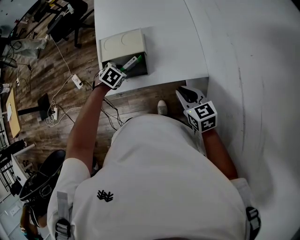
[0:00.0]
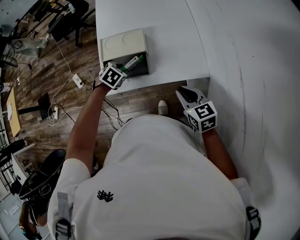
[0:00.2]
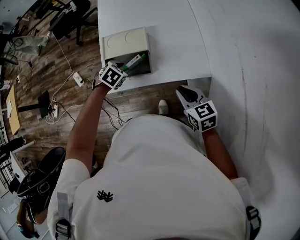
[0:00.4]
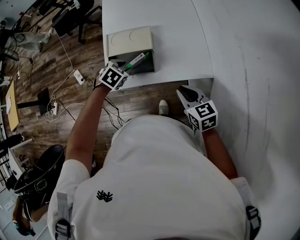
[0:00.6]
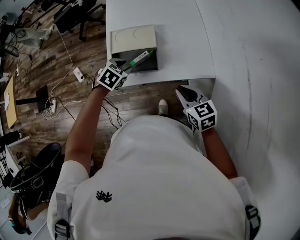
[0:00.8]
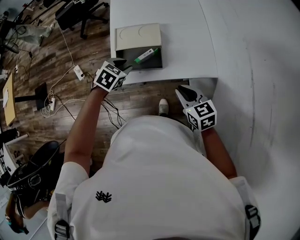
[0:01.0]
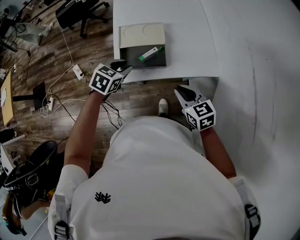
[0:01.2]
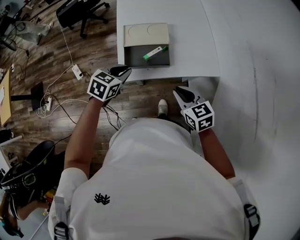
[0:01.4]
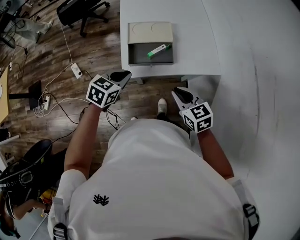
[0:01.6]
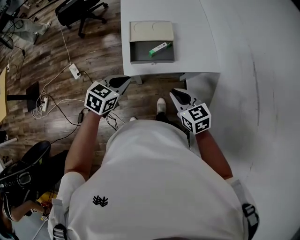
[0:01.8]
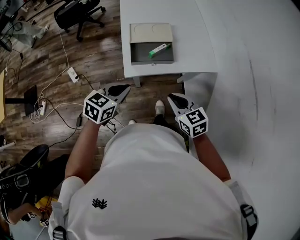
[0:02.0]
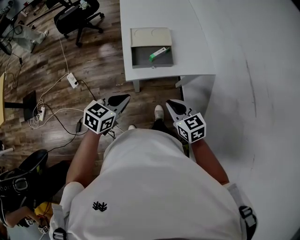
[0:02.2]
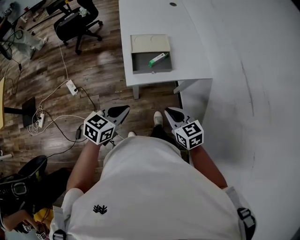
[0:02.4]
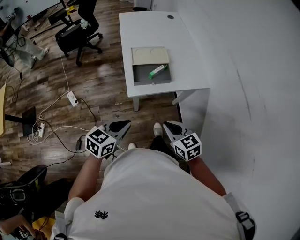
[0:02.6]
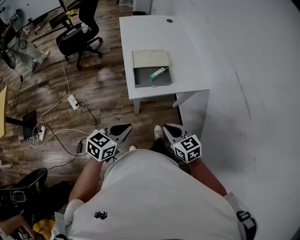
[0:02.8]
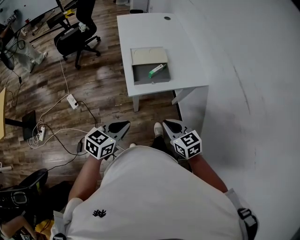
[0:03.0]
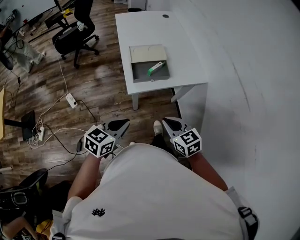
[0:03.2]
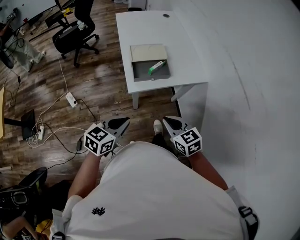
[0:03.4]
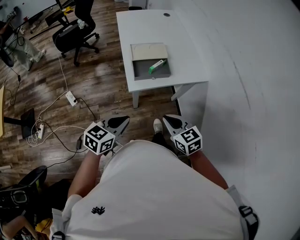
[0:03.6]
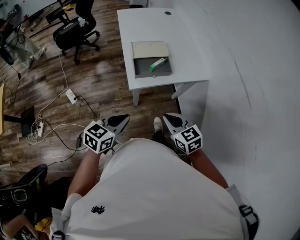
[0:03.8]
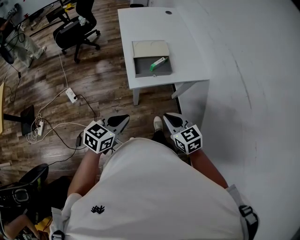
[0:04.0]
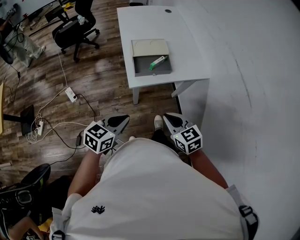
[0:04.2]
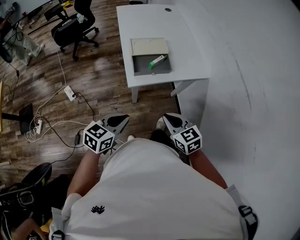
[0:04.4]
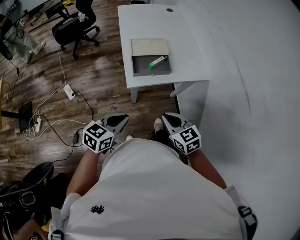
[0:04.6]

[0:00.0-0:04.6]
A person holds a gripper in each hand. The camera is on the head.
0:00.0 to 0:01.6: The left gripper heads upward, backward and to the left, covering roughly 20 cm, angles its fingers upward, by approximately 30 degrees, and closes up. The right gripper travels to the left by some 15 cm.
0:01.6 to 0:03.0: The right gripper heads backward and to the left, covering some 15 cm. The left gripper moves backward, some 20 cm.
0:03.0 to 0:04.6: There are only small adjustments of the grippers.

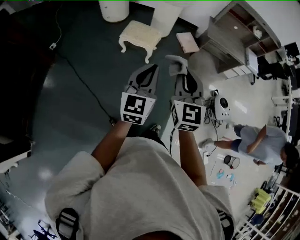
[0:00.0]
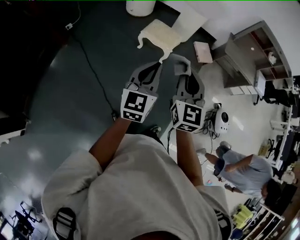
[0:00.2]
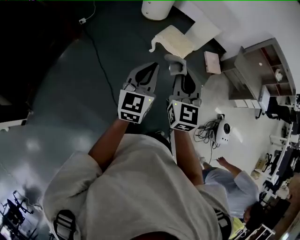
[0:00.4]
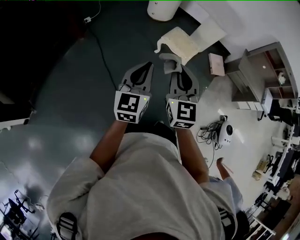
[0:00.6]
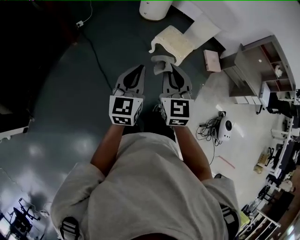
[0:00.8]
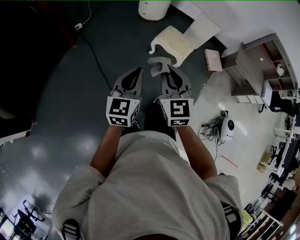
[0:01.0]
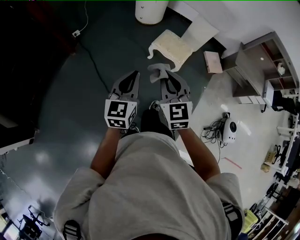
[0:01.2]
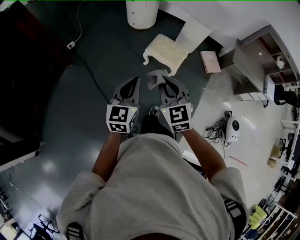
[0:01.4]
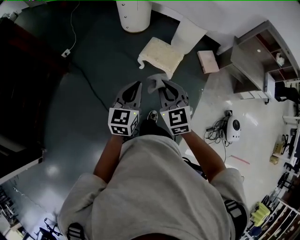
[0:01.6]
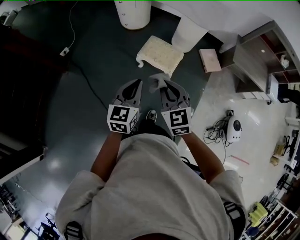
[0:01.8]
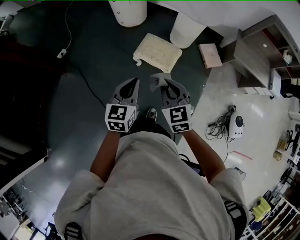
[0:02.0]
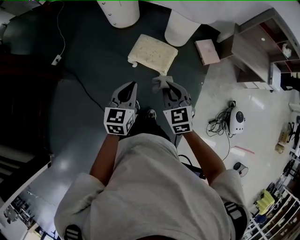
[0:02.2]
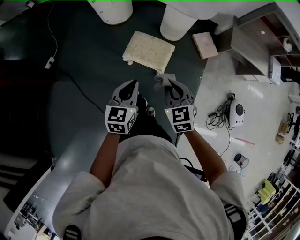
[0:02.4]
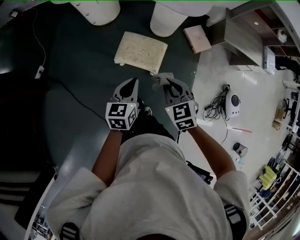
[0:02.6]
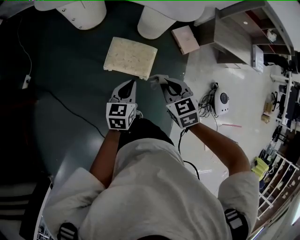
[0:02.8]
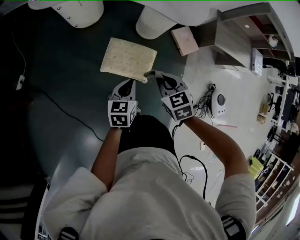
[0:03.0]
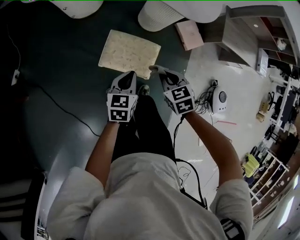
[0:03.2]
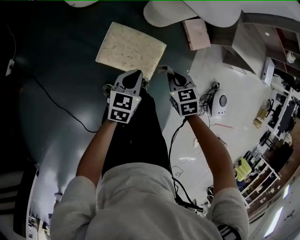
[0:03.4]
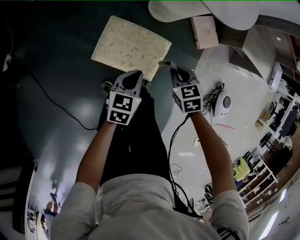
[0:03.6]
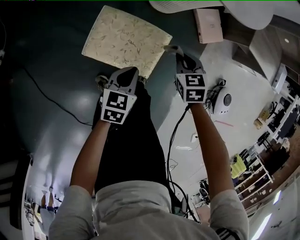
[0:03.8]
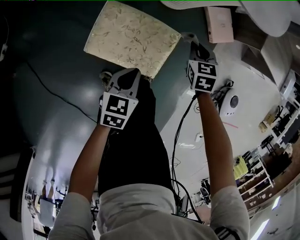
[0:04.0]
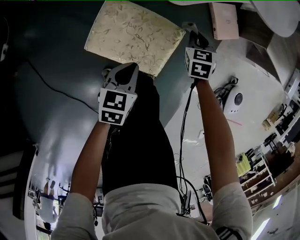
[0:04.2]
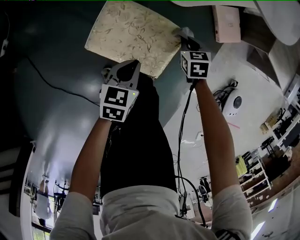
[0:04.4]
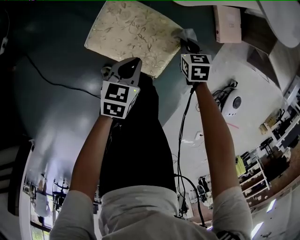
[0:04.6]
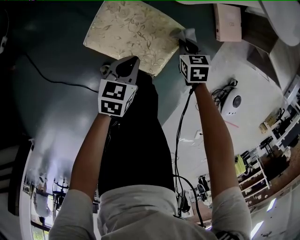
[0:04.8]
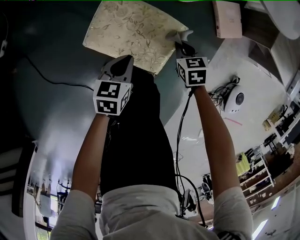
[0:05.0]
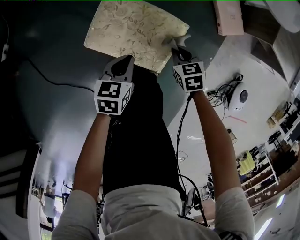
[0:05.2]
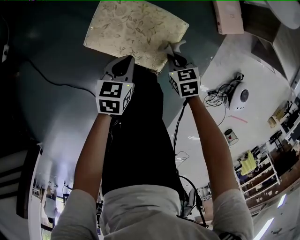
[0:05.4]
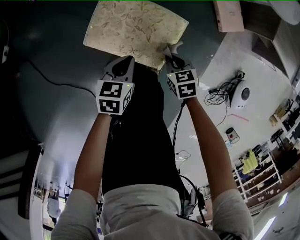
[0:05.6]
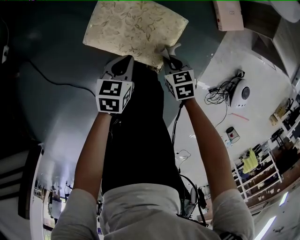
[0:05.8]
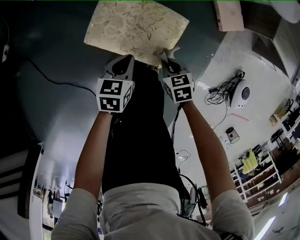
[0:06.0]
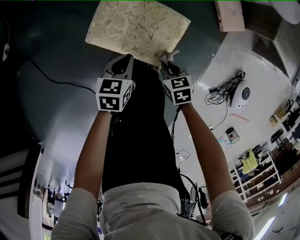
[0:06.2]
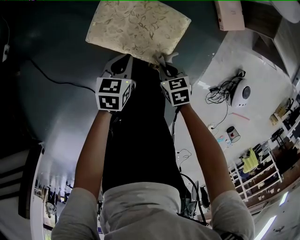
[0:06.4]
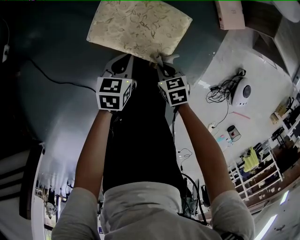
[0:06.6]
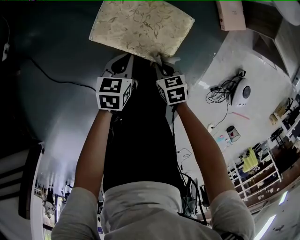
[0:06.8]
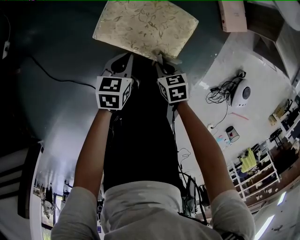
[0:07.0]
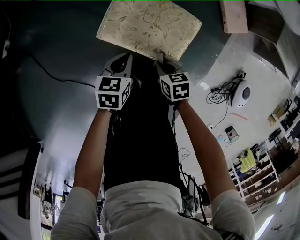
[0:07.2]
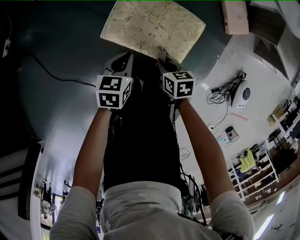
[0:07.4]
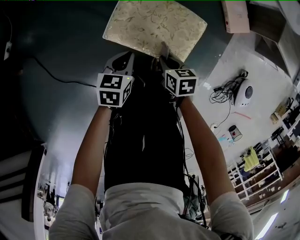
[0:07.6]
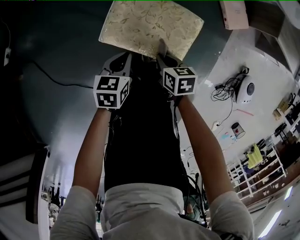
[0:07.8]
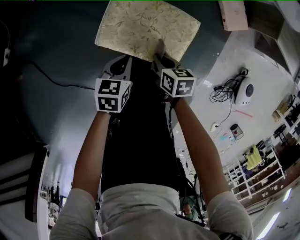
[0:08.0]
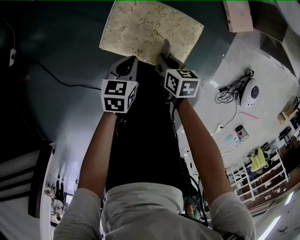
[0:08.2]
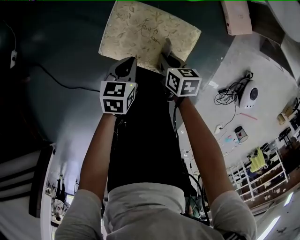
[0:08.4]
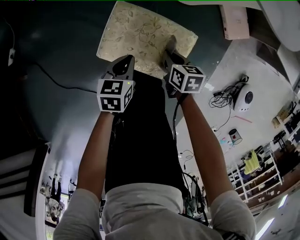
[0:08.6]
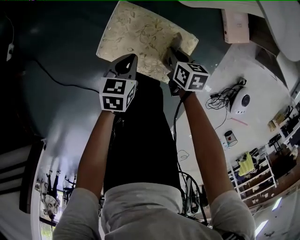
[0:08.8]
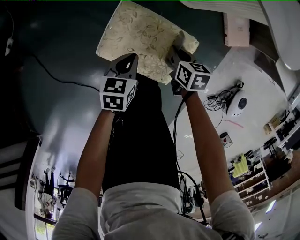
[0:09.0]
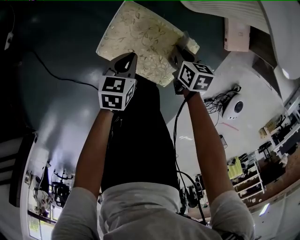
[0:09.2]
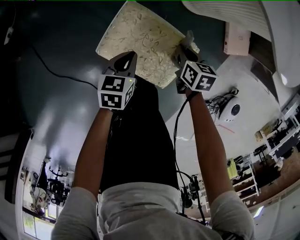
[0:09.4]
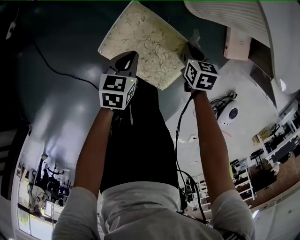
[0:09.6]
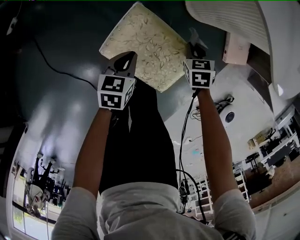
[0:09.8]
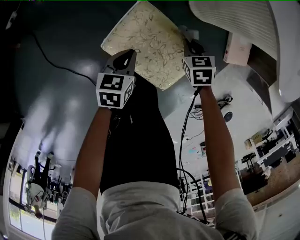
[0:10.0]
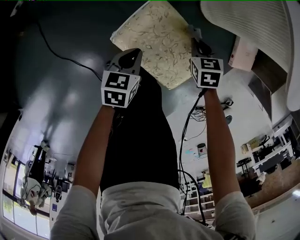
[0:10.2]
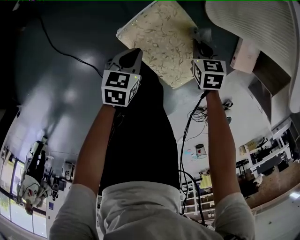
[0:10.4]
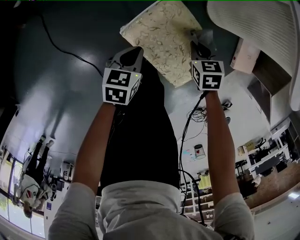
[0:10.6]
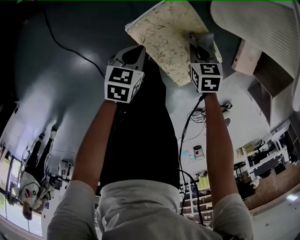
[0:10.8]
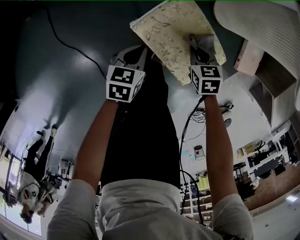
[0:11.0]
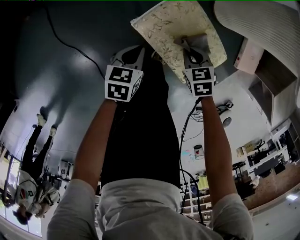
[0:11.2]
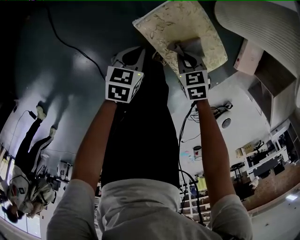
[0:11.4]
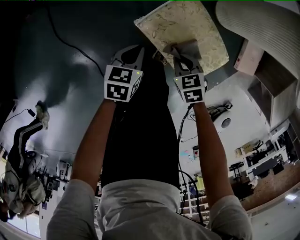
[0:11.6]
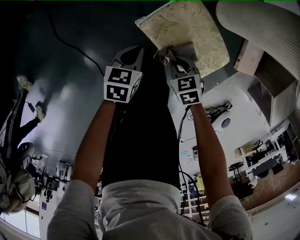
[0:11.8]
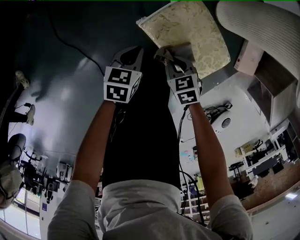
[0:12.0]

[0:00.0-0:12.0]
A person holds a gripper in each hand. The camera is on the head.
0:00.0 to 0:01.6: The left gripper heads forward and to the left, covering roughly 30 cm. Meanwhile the right gripper travels forward, to the left and downward by roughly 30 cm, and rotates approximately 30 degrees.
0:01.6 to 0:03.0: Both grippers move forward and downward, some 40 cm. The right gripper changes its angle by some 30 degrees; the left gripper changes its angle by about 30 degrees.
0:03.0 to 0:04.4: The left gripper travels downward by roughly 30 cm. The right gripper goes about 50 cm downward and forward.
0:04.4 to 0:06.0: The right gripper moves backward, approximately 15 cm.
0:06.0 to 0:07.6: Both grippers move to the left, some 10 cm.
0:07.6 to 0:09.0: The left gripper heads forward and to the right, covering roughly 10 cm, while the right gripper is displaced forward and to the right by some 15 cm.
0:09.0 to 0:10.4: The right gripper travels forward by roughly 5 cm, and rotates about 40 degrees. Meanwhile the left gripper heads to the left, covering roughly 5 cm.
0:10.4 to 0:12.0: The left gripper is displaced to the left by approximately 10 cm, while the right gripper is displaced to the left and backward by some 20 cm.

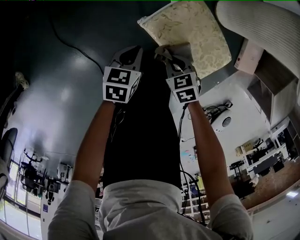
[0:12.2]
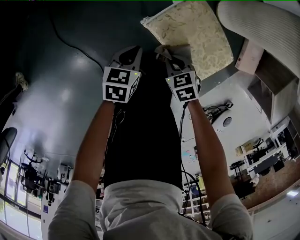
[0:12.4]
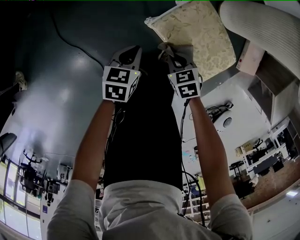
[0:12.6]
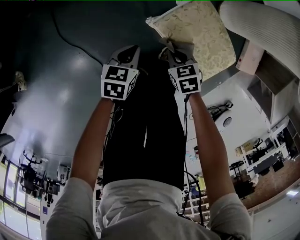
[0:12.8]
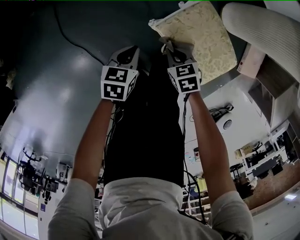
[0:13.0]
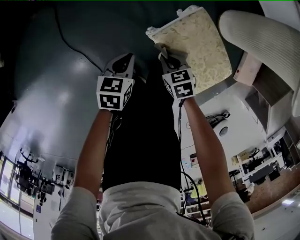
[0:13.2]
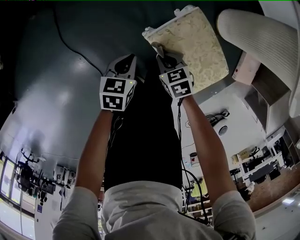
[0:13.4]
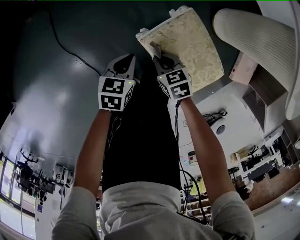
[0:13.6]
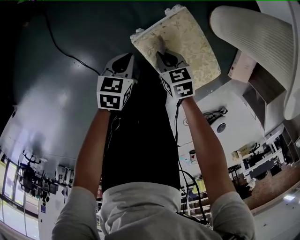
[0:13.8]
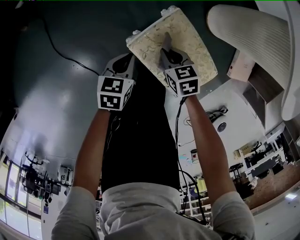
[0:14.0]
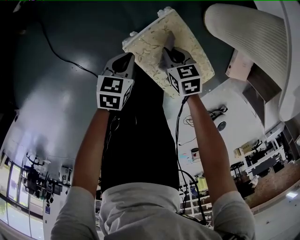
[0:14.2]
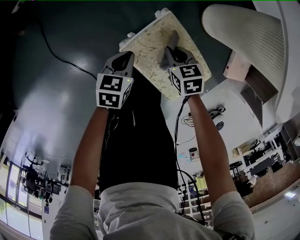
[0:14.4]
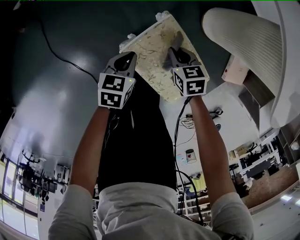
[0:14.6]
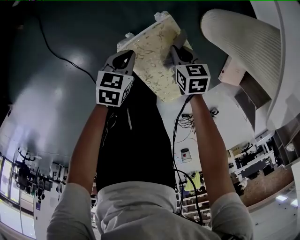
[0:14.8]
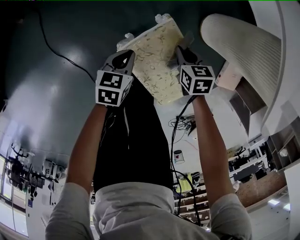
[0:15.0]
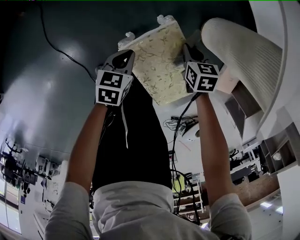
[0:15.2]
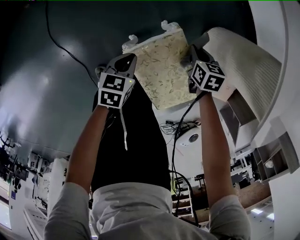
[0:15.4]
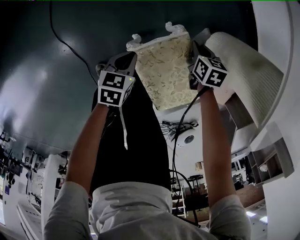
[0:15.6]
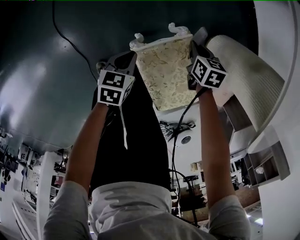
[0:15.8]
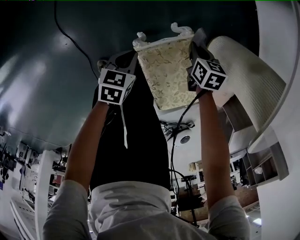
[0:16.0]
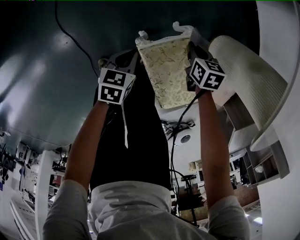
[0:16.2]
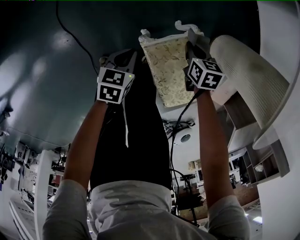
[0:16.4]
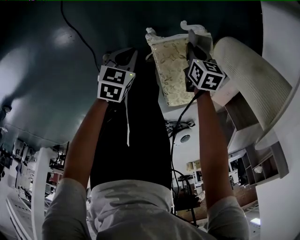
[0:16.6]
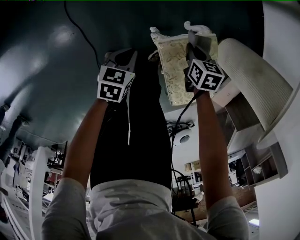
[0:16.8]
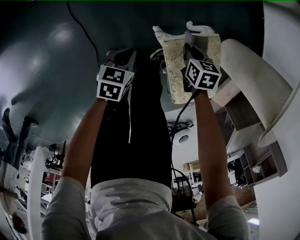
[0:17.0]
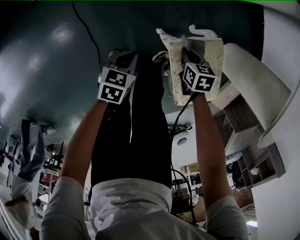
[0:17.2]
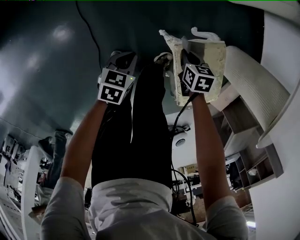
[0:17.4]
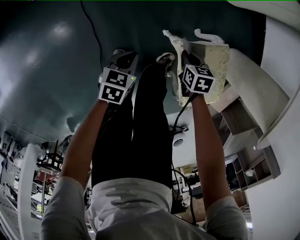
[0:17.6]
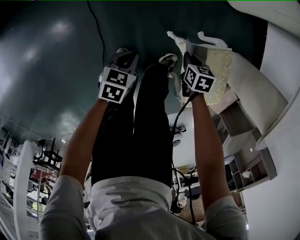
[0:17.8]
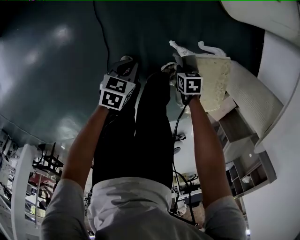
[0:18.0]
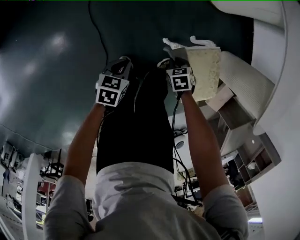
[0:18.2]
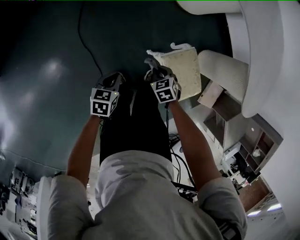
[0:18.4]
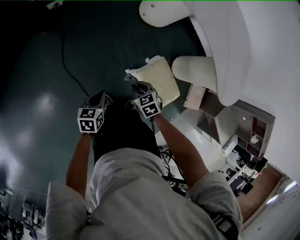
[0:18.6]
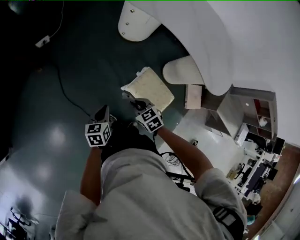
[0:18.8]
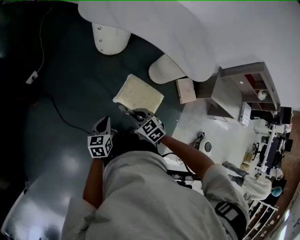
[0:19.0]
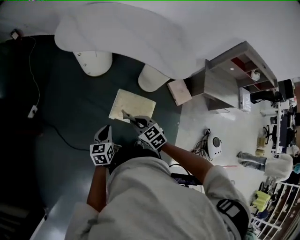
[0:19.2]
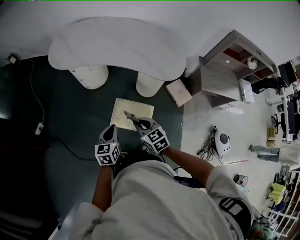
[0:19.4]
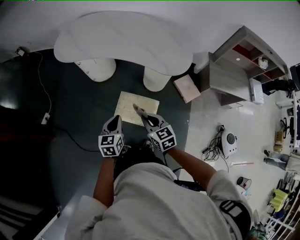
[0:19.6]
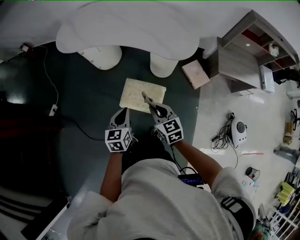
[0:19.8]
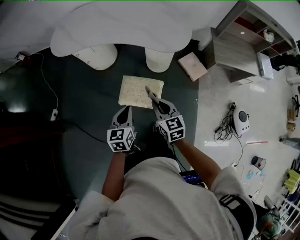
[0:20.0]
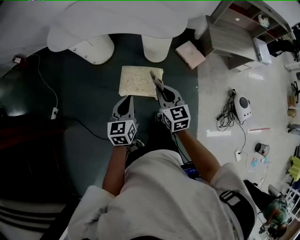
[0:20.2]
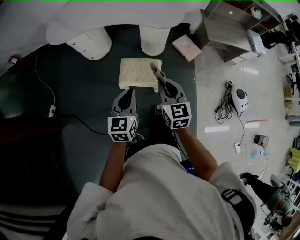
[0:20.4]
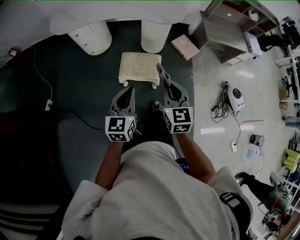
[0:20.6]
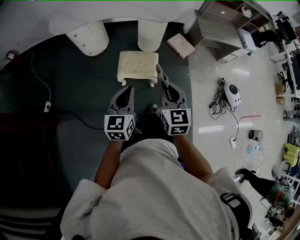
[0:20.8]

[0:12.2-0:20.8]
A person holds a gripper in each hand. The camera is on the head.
0:12.2 to 0:13.6: The right gripper travels forward by roughly 5 cm.
0:13.6 to 0:15.0: The right gripper moves to the right and forward, some 20 cm; the left gripper goes roughly 10 cm to the right and forward.
0:15.0 to 0:16.6: Both grippers move to the left, approximately 10 cm.
0:16.6 to 0:18.0: The left gripper moves approximately 20 cm. The right gripper shifts by some 20 cm, and turns by roughly 30 degrees.
0:18.0 to 0:19.4: Both grippers move upward, some 50 cm. The left gripper swivels some 50 degrees; the right gripper tips its fingers upward by approximately 40 degrees.
0:19.4 to 0:20.8: The right gripper ends up about 25 cm from where it was, and changes its angle by some 40 degrees. The left gripper shifts by about 25 cm, and changes its angle by approximately 20 degrees.
